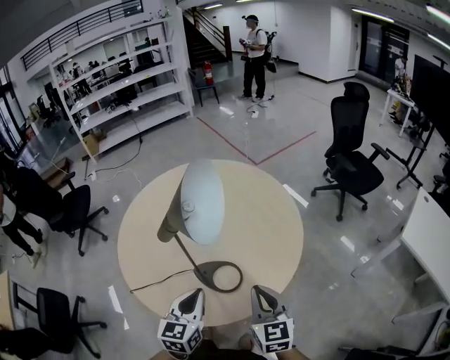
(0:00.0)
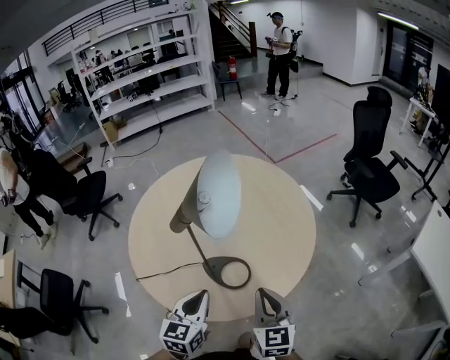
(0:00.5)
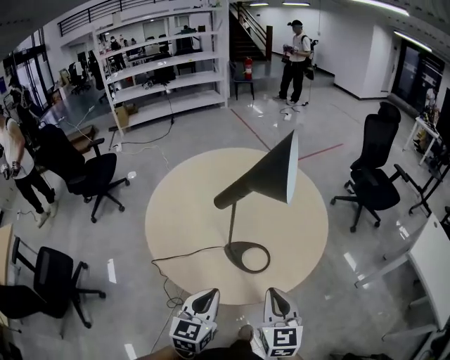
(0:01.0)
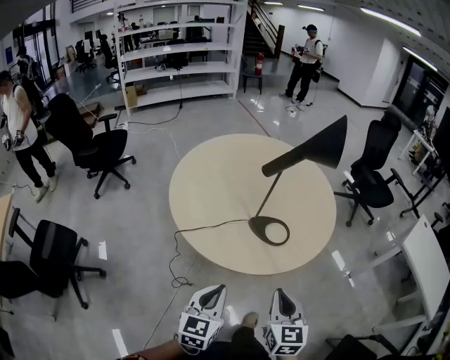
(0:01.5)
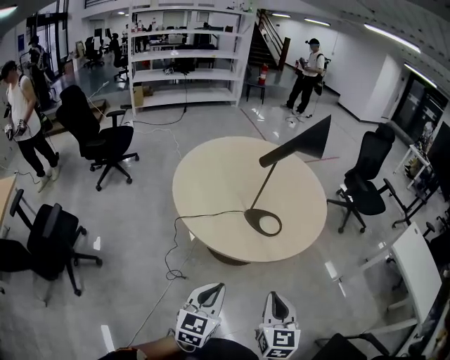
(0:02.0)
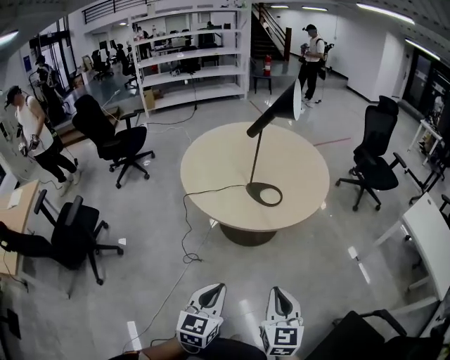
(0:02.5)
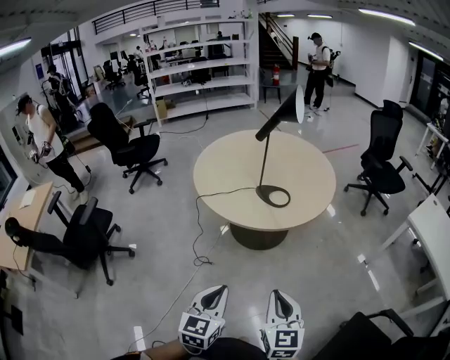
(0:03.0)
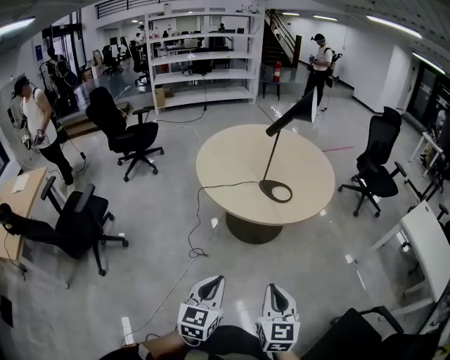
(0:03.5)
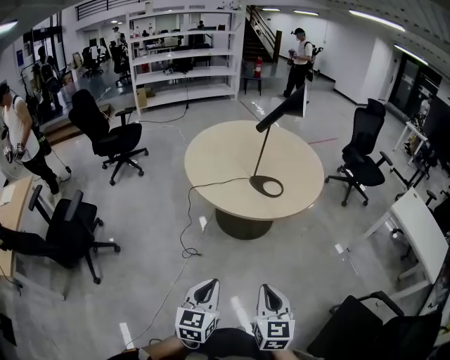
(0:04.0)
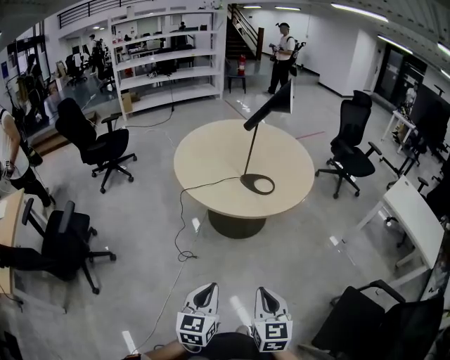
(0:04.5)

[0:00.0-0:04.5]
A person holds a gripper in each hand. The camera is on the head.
0:00.0 to 0:02.0: The two grippers travel together, backward and to the left, approximately 40 cm.
0:02.0 to 0:04.5: Both grippers move backward, approximately 25 cm.

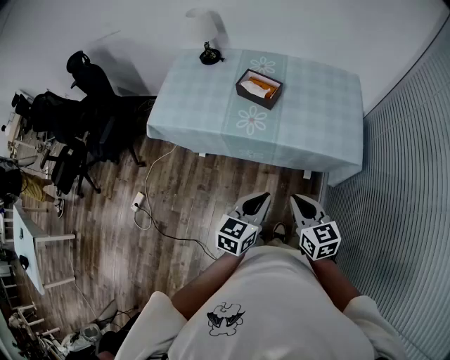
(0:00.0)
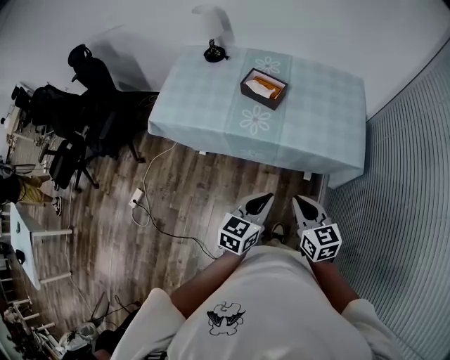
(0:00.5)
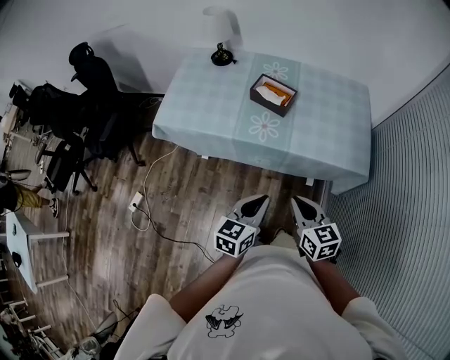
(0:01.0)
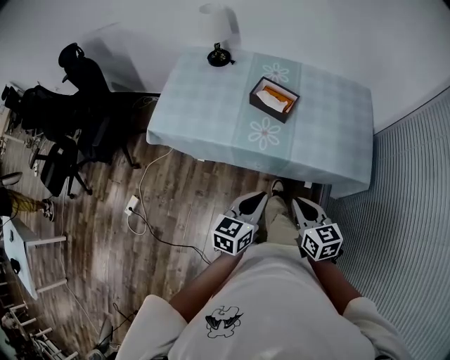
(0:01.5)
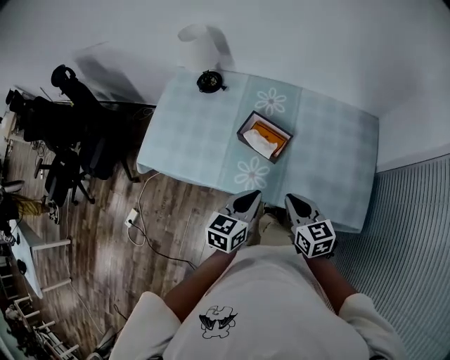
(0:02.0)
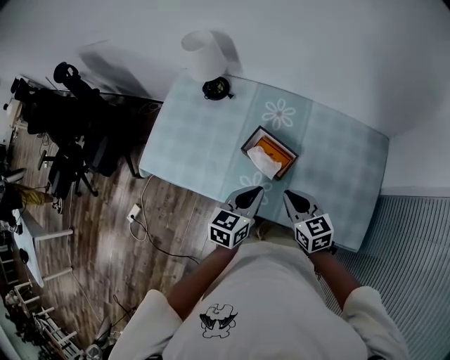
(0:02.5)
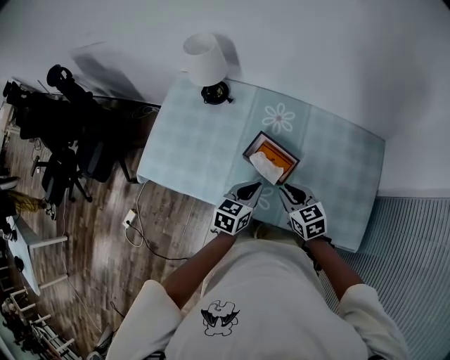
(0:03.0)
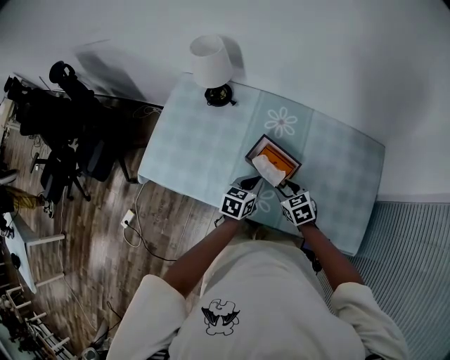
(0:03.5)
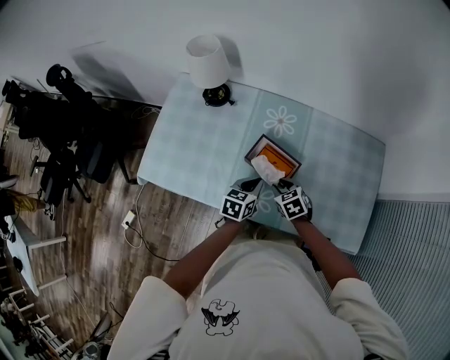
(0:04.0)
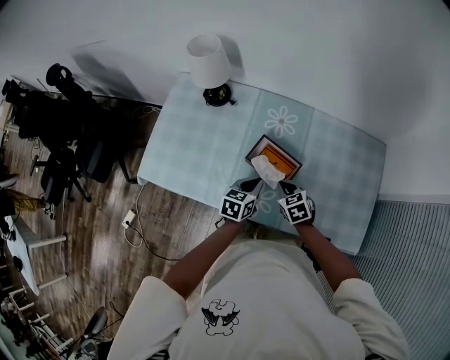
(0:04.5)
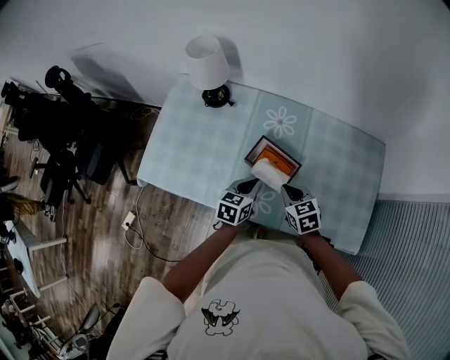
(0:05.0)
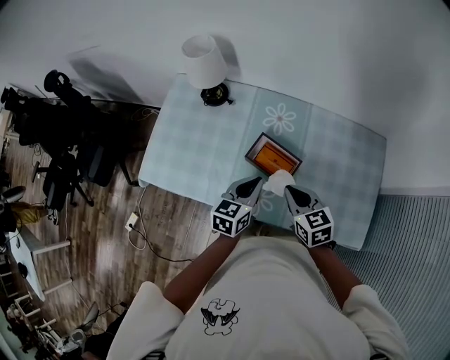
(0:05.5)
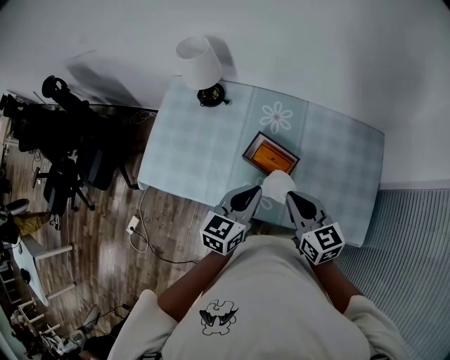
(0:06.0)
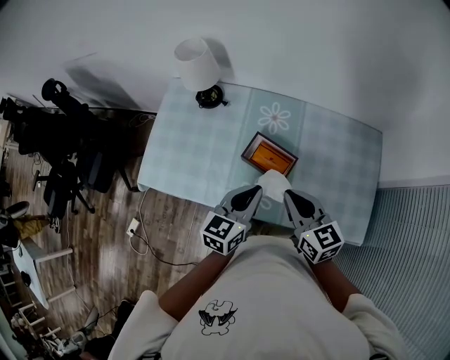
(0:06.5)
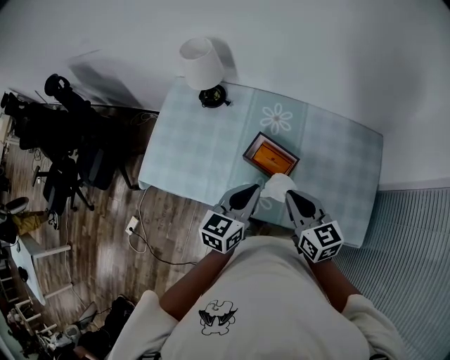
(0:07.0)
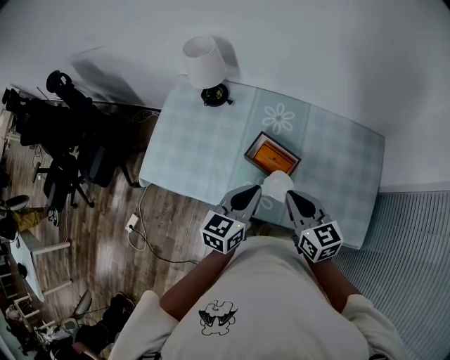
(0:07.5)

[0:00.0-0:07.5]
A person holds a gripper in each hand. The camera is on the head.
0:00.0 to 0:02.0: The grippers both shift forward by some 30 cm.
0:02.0 to 0:04.0: Both grippers move forward and downward, roughly 20 cm. The right gripper rotates about 30 degrees, and opens.
0:04.0 to 0:05.5: The two grippers go about 15 cm upward. The right gripper changes its angle by roughly 20 degrees, and closes.
0:05.5 to 0:07.5: Both grippers travel together upward, some 5 cm.

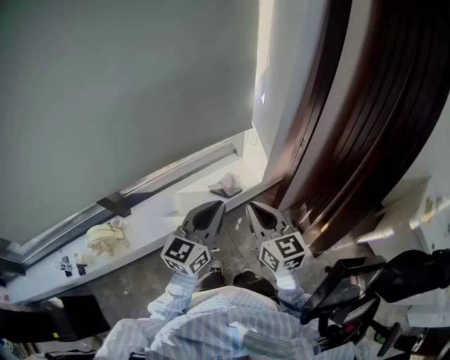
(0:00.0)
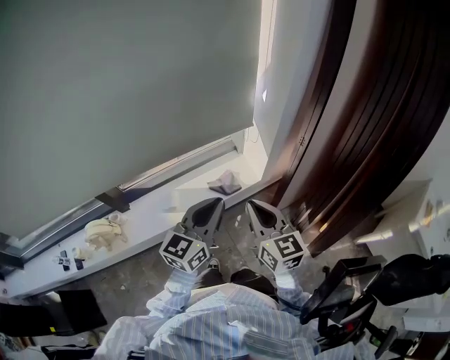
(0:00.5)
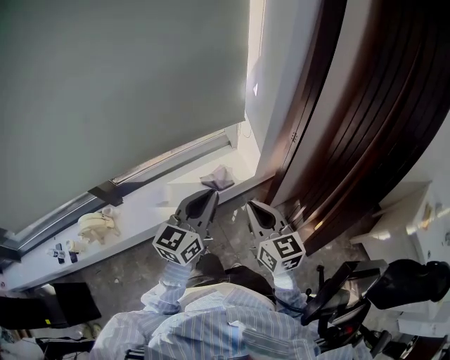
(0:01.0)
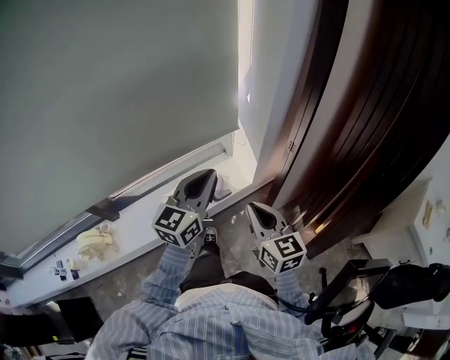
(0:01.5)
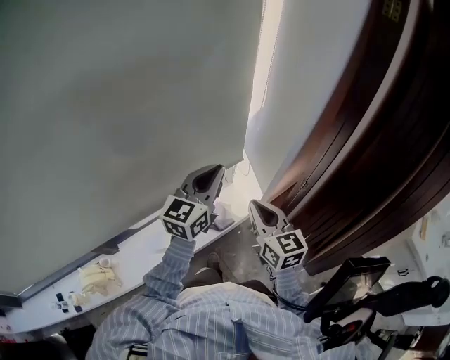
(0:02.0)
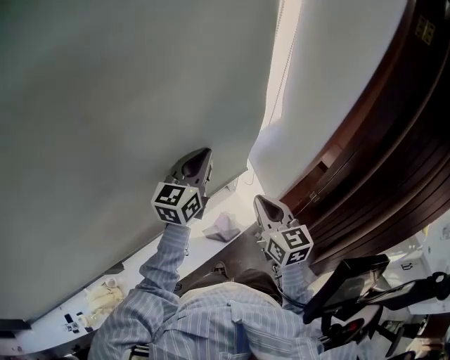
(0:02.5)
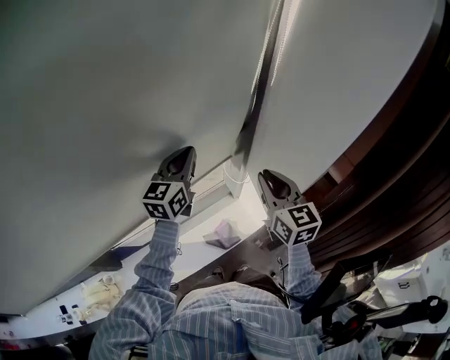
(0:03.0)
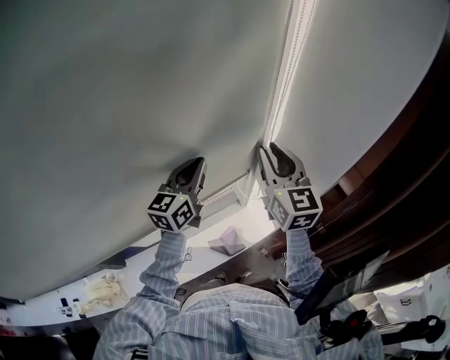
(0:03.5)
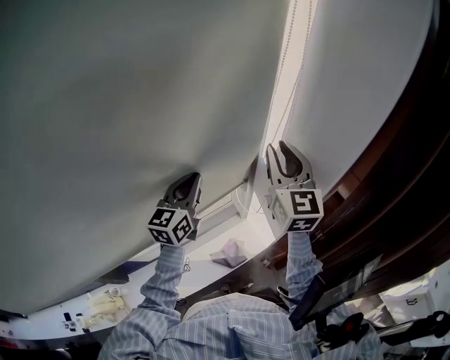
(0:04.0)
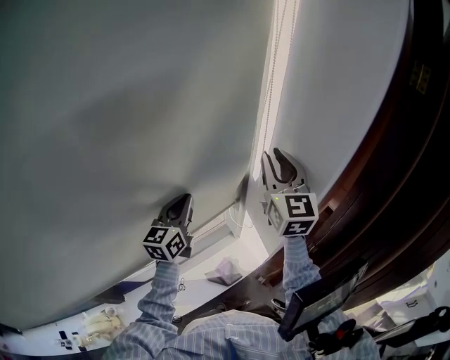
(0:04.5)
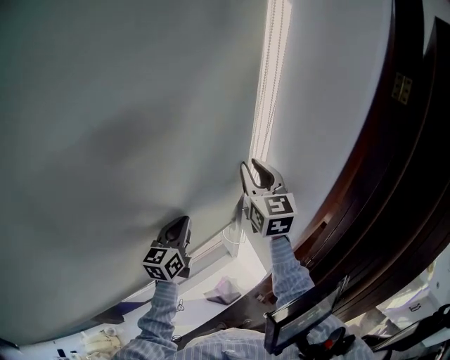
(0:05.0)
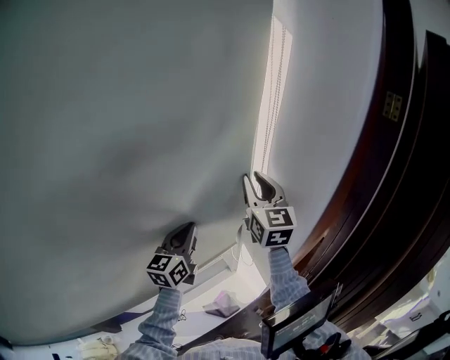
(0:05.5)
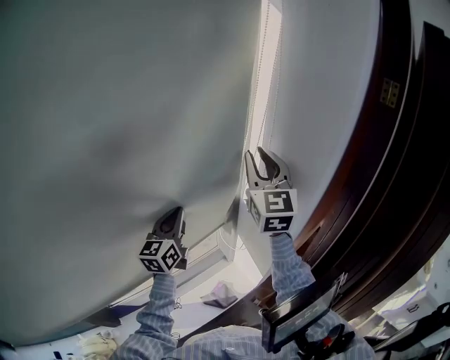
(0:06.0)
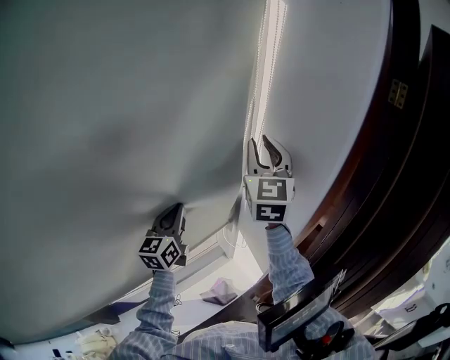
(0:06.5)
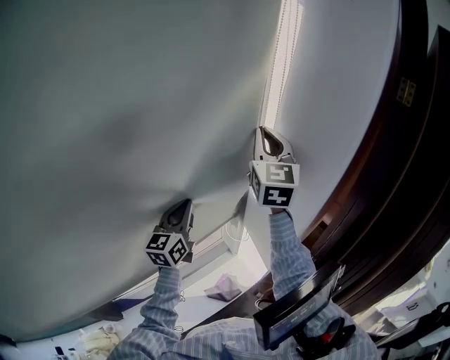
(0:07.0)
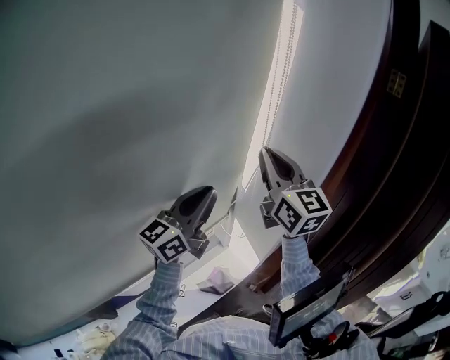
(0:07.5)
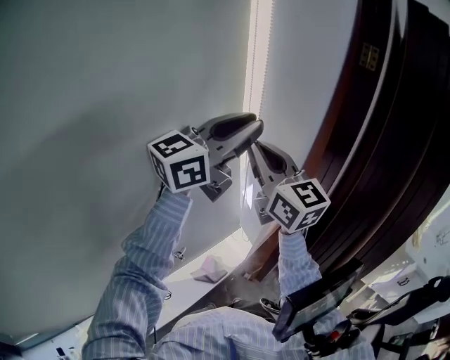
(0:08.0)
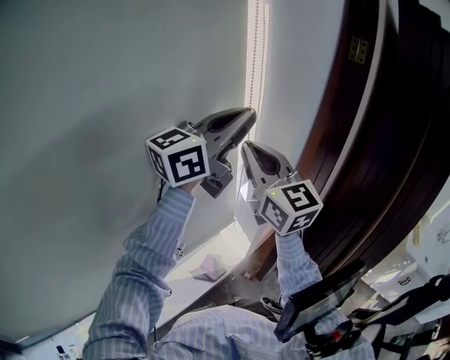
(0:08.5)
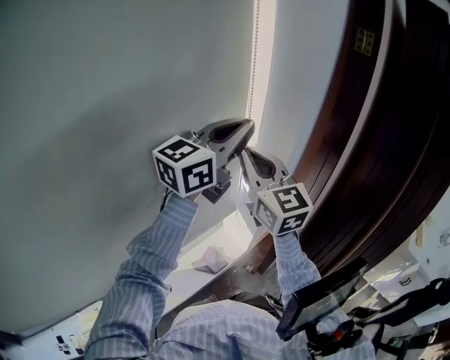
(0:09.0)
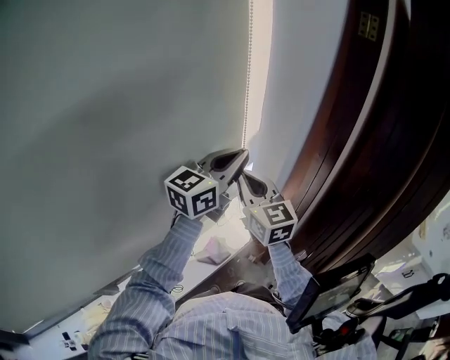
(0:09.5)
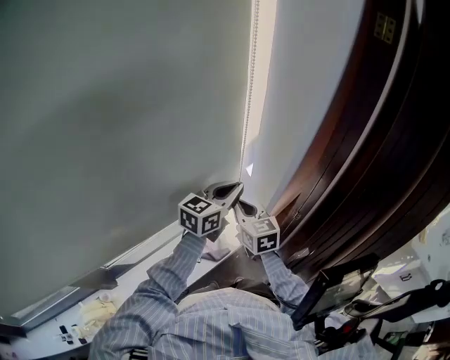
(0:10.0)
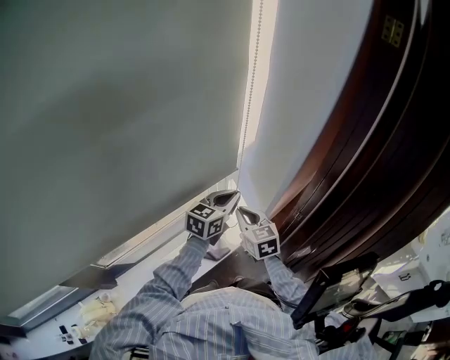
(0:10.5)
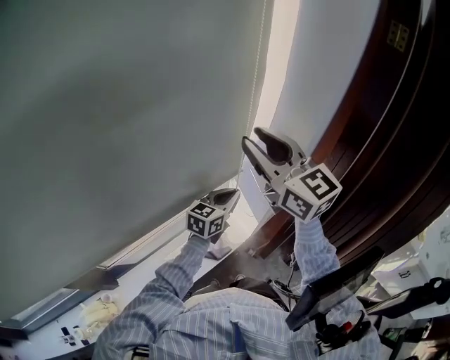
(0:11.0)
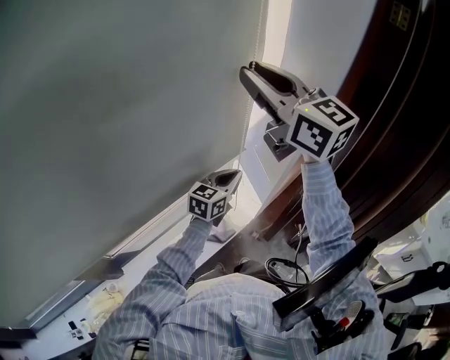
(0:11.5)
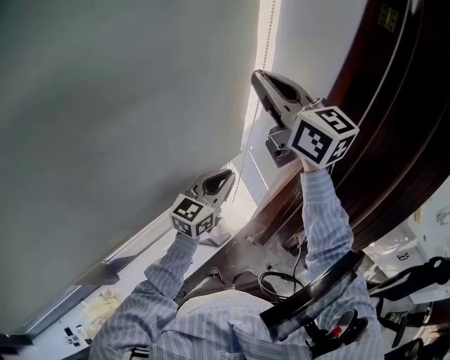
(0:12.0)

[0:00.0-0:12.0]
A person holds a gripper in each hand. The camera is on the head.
0:00.0 to 0:02.0: The grippers both shift forward by roughly 30 cm.
0:02.0 to 0:04.0: The left gripper moves forward and to the left, roughly 20 cm, while the right gripper is displaced forward and upward by approximately 30 cm, and rotates approximately 30 degrees.
0:04.0 to 0:06.0: The right gripper heads upward, covering about 10 cm.
0:06.0 to 0:08.0: The left gripper is displaced upward and to the right by about 35 cm, and changes its angle by some 50 degrees; the right gripper shifts about 10 cm backward, and swivels some 20 degrees.
0:08.0 to 0:10.0: The two grippers go about 30 cm downward. The right gripper swivels some 30 degrees. The left gripper changes its angle by about 30 degrees.
0:10.0 to 0:12.0: The right gripper heads upward, covering some 35 cm, changes its angle by approximately 30 degrees, and opens, then closes once more; the left gripper reaches some 5 cm downward, then returns.

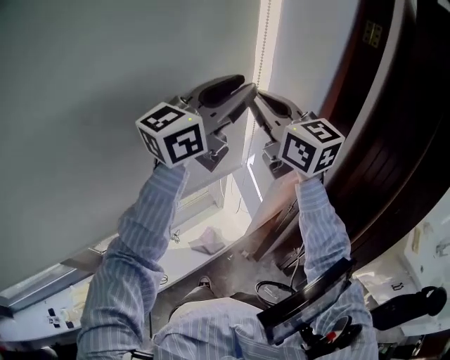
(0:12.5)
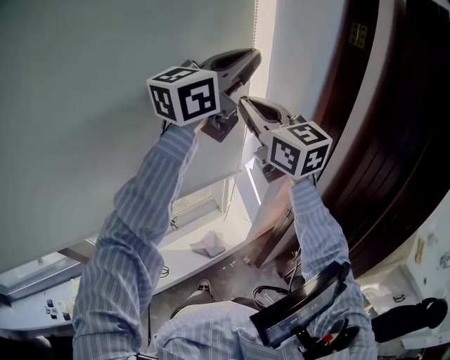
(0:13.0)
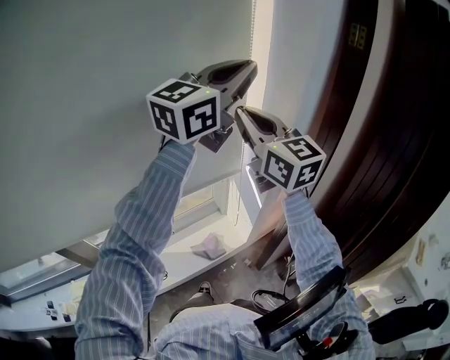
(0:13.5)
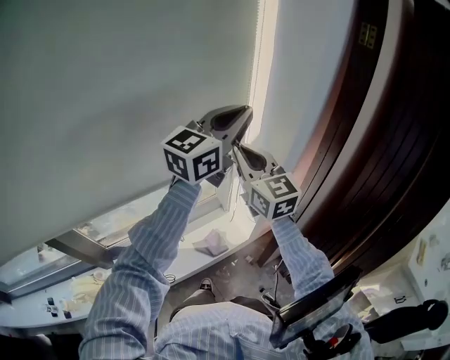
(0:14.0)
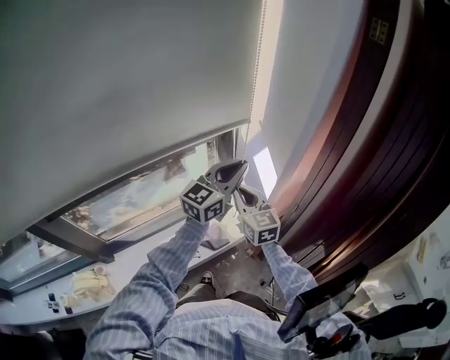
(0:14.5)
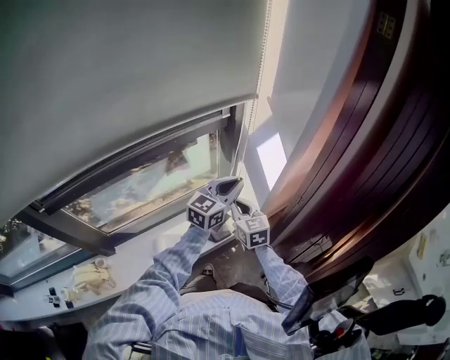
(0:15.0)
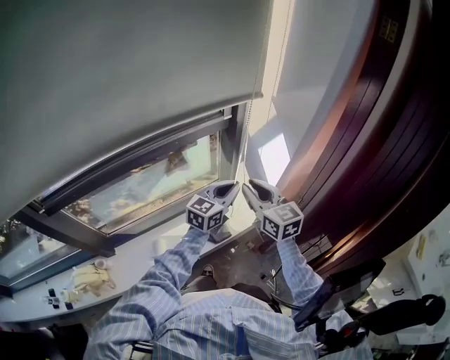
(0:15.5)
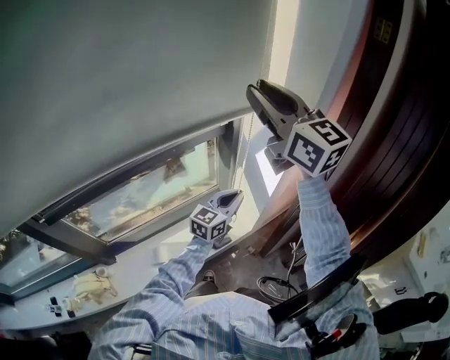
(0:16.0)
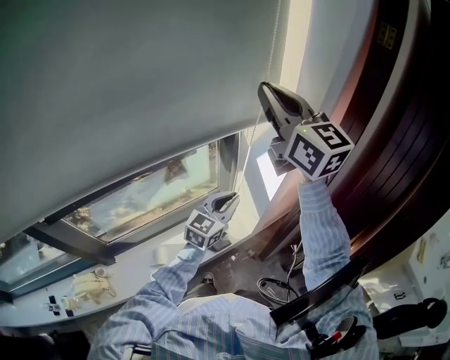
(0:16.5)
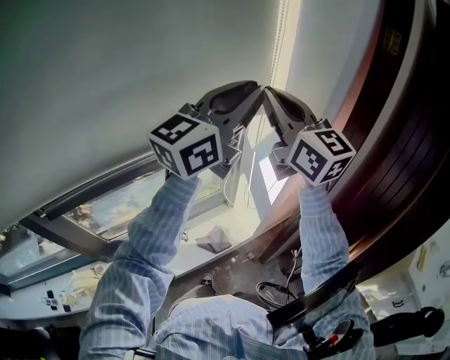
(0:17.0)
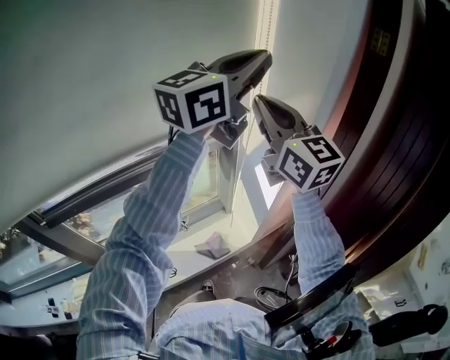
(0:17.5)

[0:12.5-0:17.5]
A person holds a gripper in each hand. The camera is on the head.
0:12.5 to 0:15.0: The two grippers go some 40 cm downward. The left gripper rotates approximately 30 degrees, and closes, while the right gripper swivels approximately 30 degrees.
0:15.0 to 0:17.5: Both grippers move upward, about 40 cm. The right gripper points its fingers approximately 30 degrees further upward, and opens and closes again. The left gripper swivels roughly 30 degrees.
